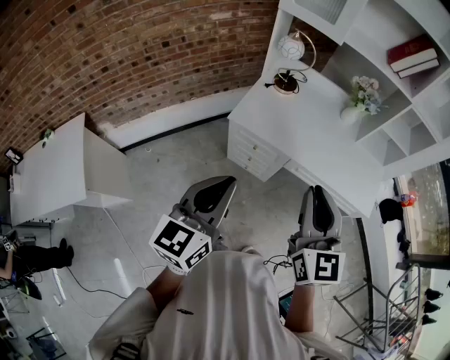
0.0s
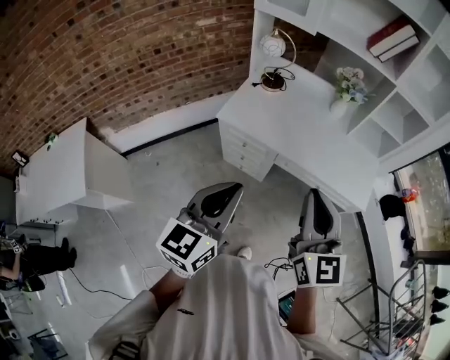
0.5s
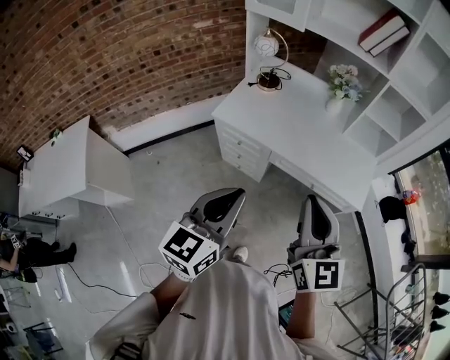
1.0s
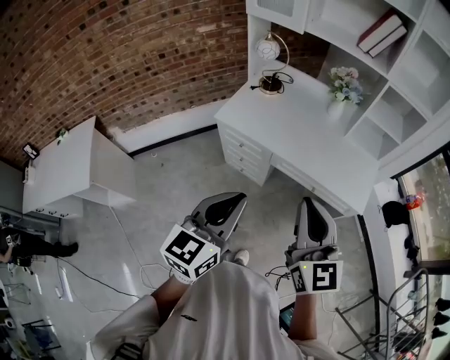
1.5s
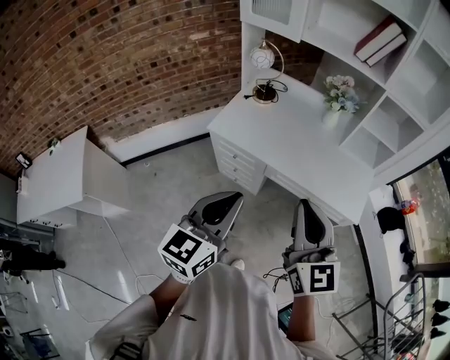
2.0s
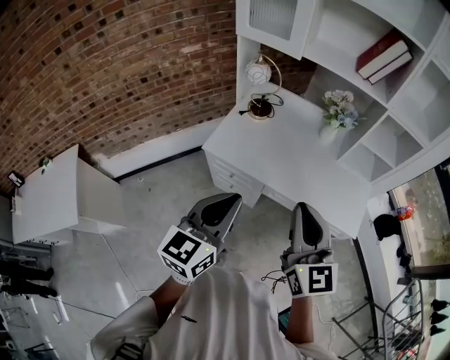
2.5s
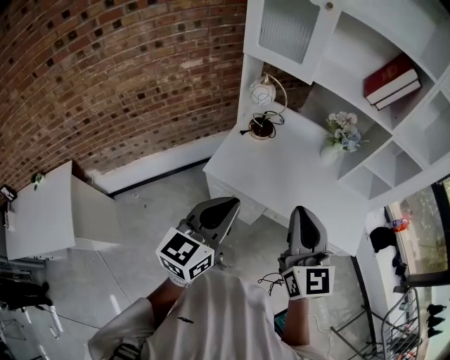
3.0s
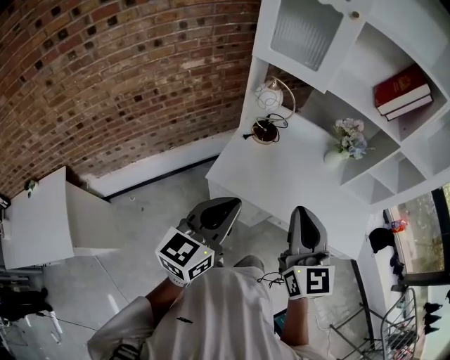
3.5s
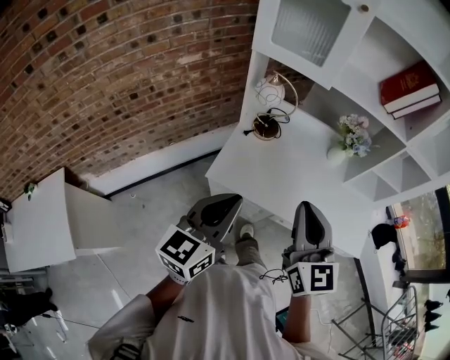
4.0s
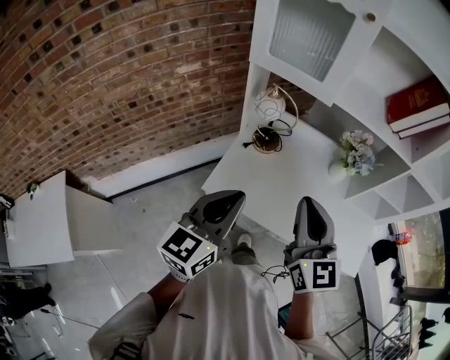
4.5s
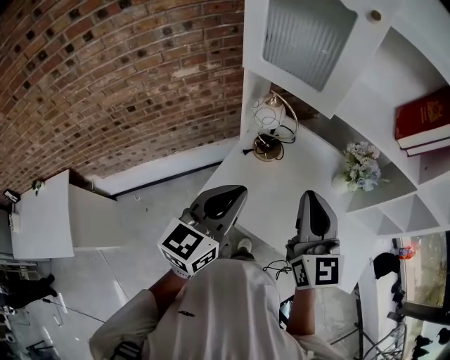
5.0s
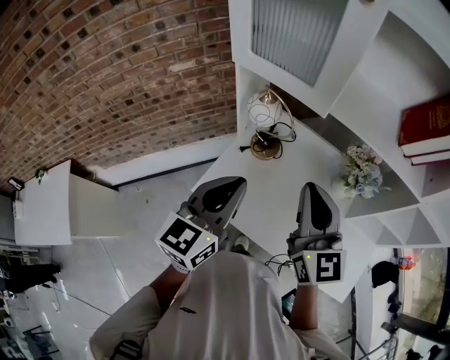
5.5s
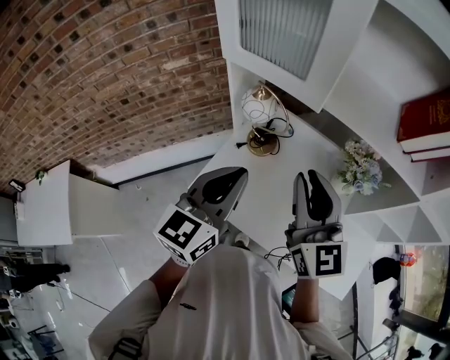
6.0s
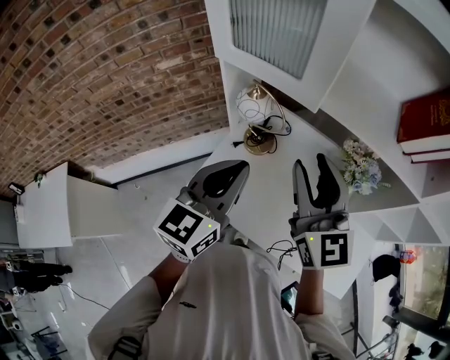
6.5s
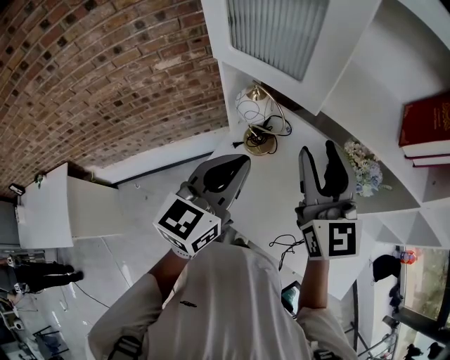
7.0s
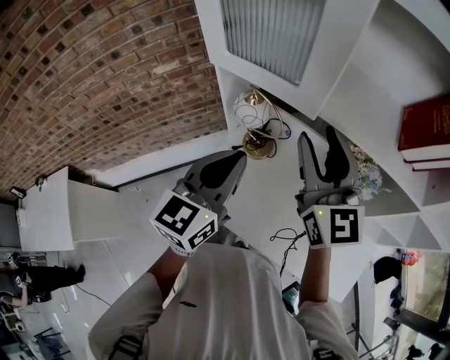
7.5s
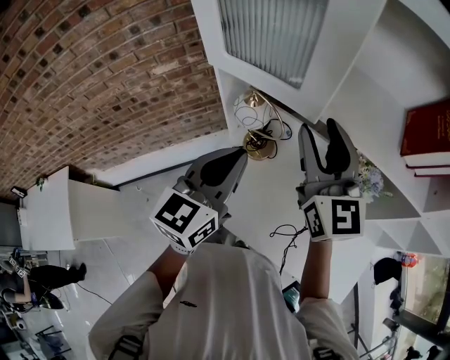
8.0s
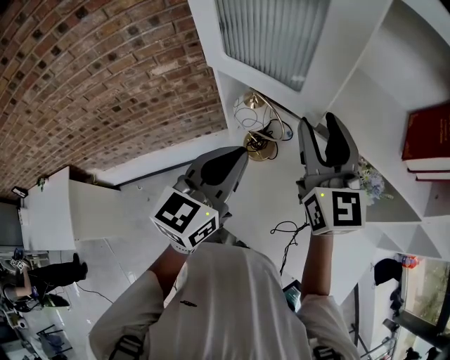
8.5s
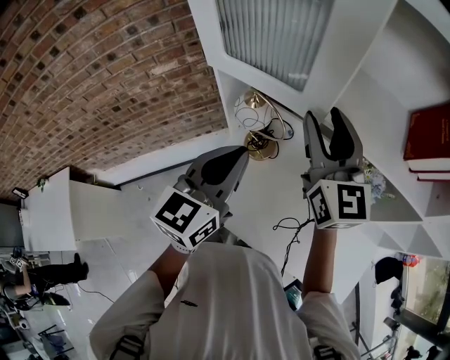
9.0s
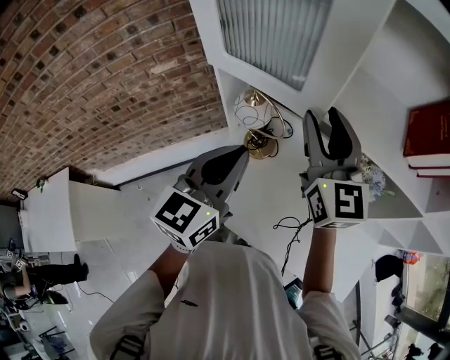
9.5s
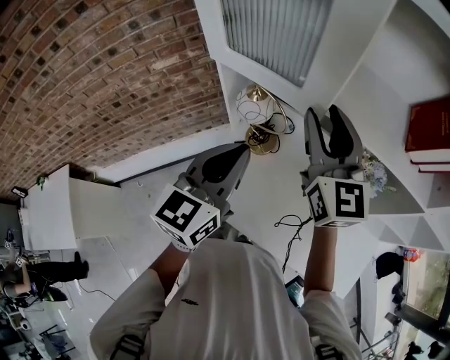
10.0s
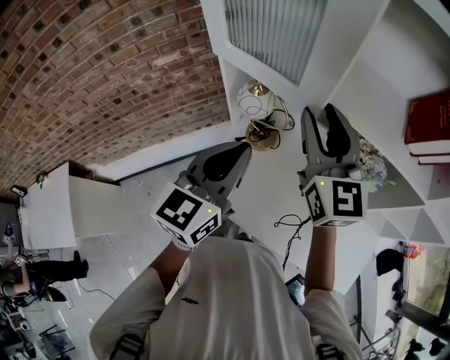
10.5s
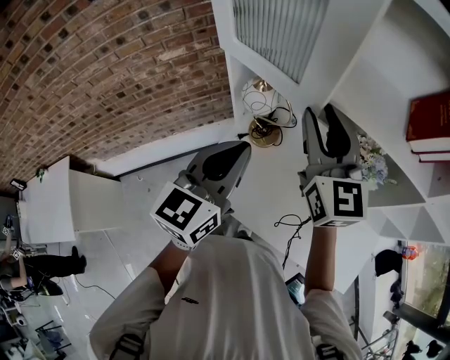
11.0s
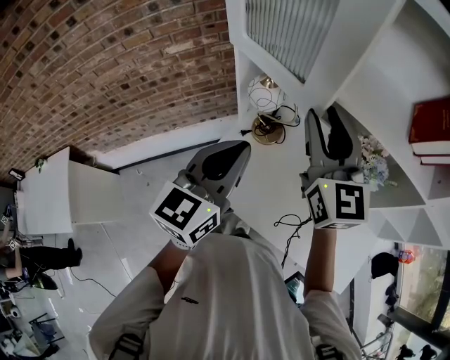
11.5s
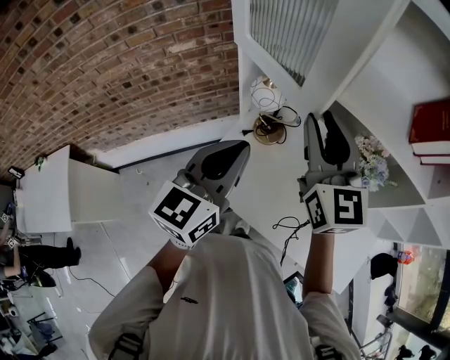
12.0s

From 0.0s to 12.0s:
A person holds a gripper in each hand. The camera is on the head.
From 0.0s to 2.0s: The grippers both shift to the right by about 20 cm.
From 2.0s to 4.0s: Both grippers move forward and to the left, about 30 cm.
From 4.0s to 6.0s: The right gripper heads forward, covering about 25 cm; the left gripper is displaced forward and to the right by some 25 cm.
From 6.0s to 8.0s: The left gripper goes about 10 cm forward. Meanwhile the right gripper moves forward, some 15 cm, and opens its fingers.
From 8.0s to 10.0s: The grippers stay close to where they were, moving slightly.
From 10.0s to 12.0s: The two grippers go about 5 cm backward.

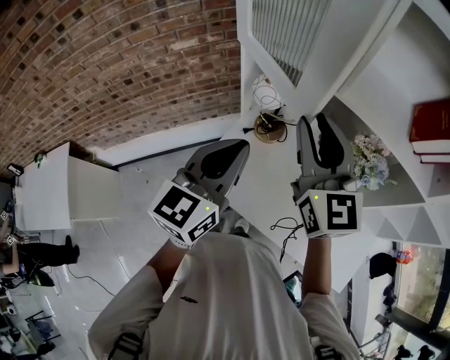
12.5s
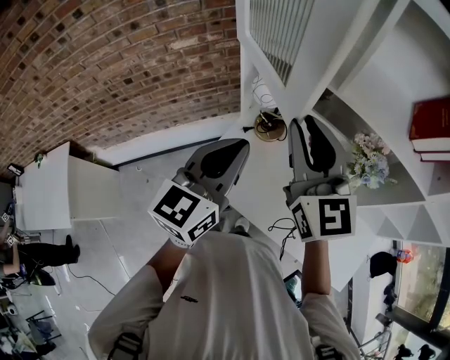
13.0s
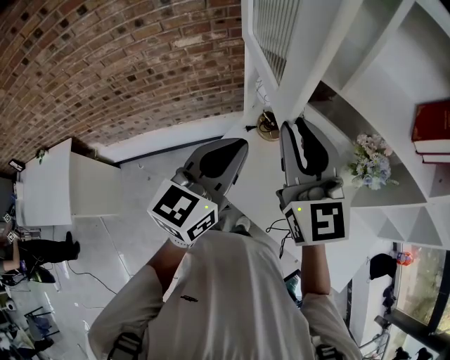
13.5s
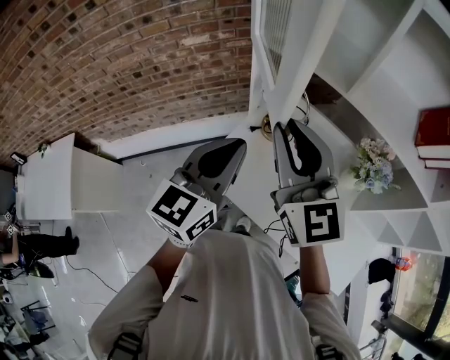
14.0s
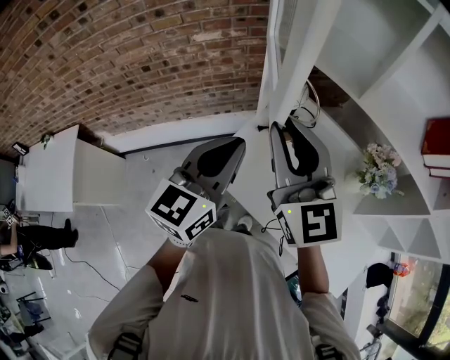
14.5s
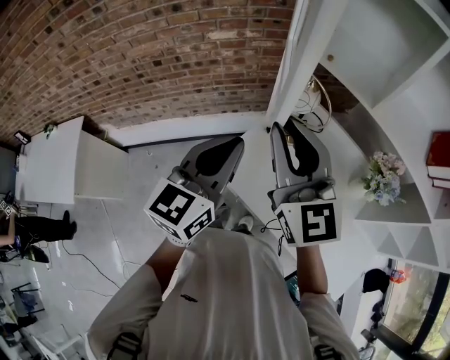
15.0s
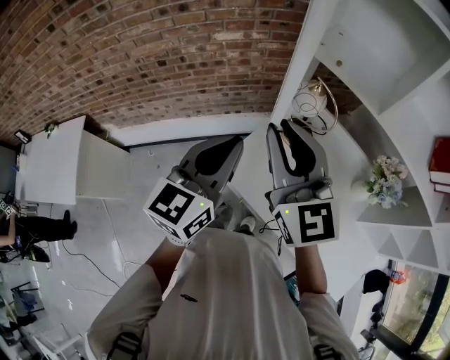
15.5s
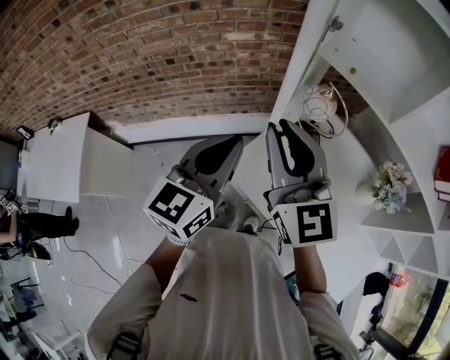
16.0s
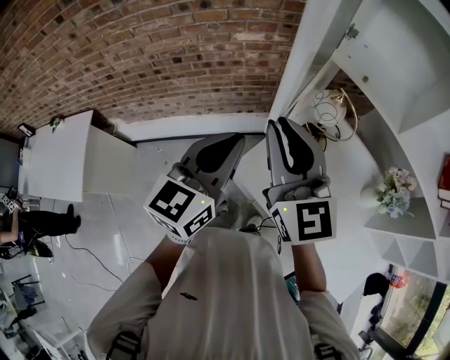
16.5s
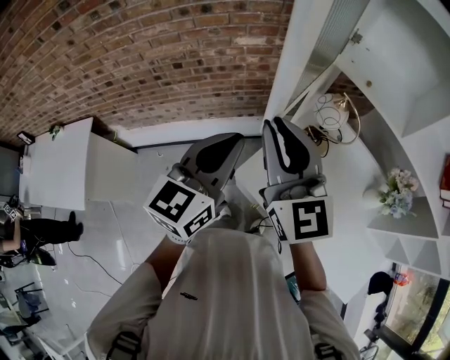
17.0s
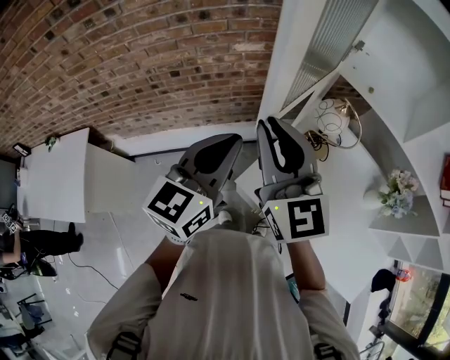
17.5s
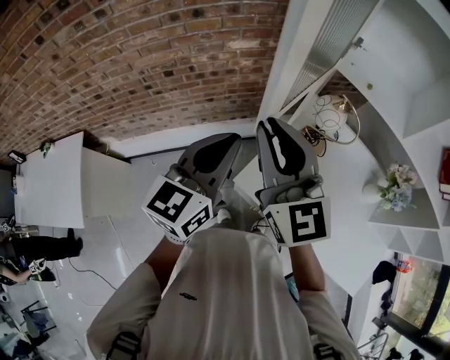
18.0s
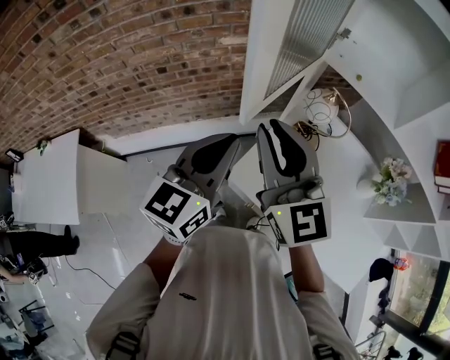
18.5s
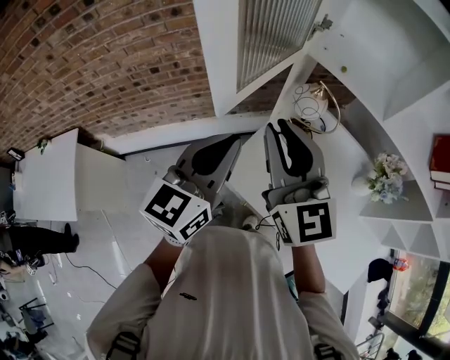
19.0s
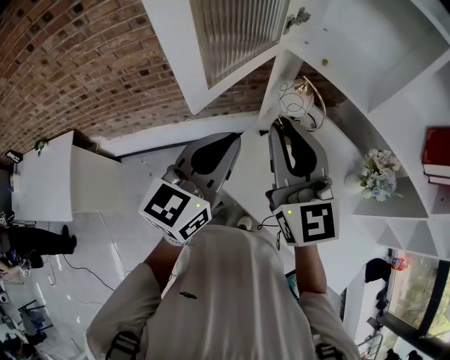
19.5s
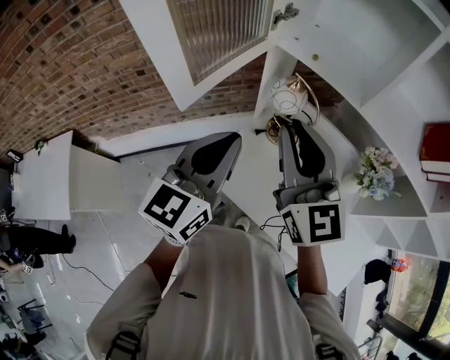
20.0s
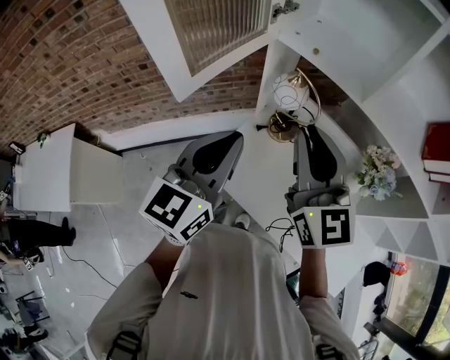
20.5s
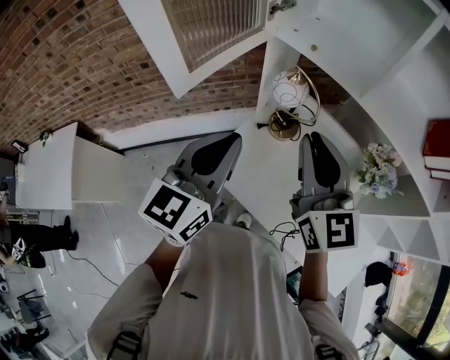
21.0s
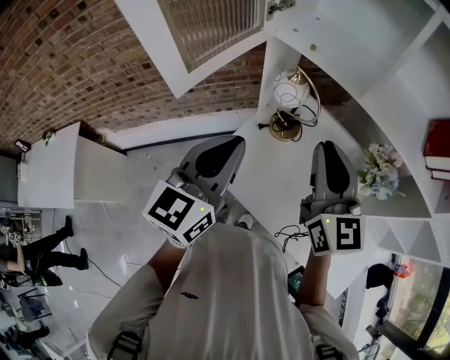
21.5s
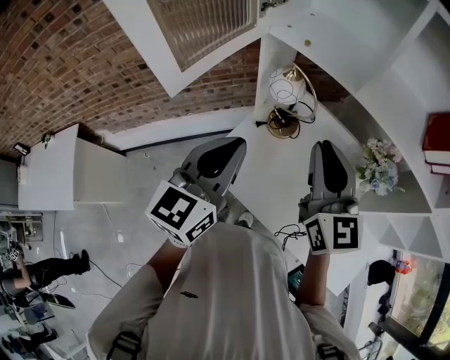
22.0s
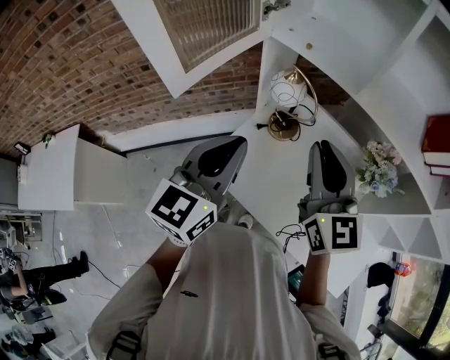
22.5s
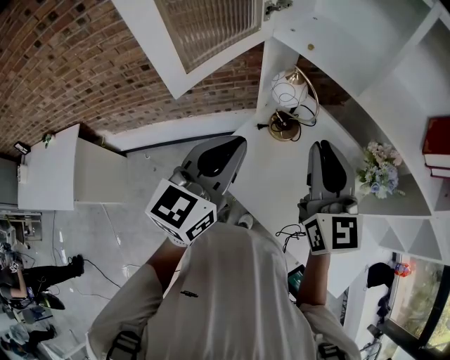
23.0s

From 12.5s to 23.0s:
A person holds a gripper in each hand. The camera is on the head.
From 12.5s to 14.5s: The right gripper goes approximately 10 cm to the left. The left gripper moves to the left, roughly 5 cm.
From 14.5s to 16.5s: Both grippers move to the left, about 15 cm.
From 19.0s to 21.0s: The right gripper travels to the right by roughly 15 cm, while the left gripper heads to the right, covering approximately 10 cm.
From 21.0s to 23.0s: There are only small adjustments of the grippers.

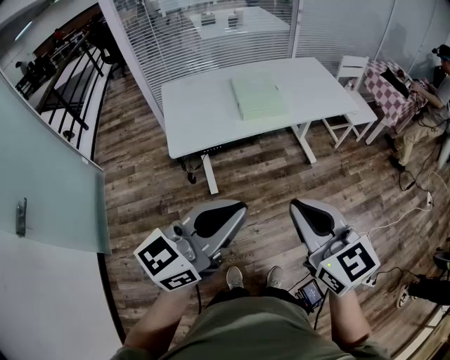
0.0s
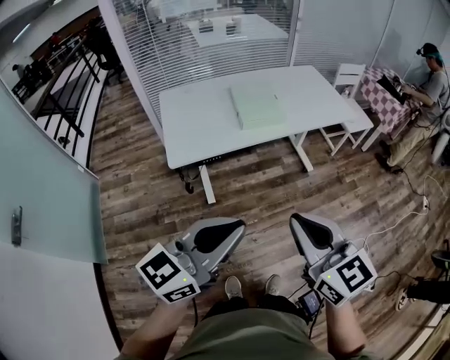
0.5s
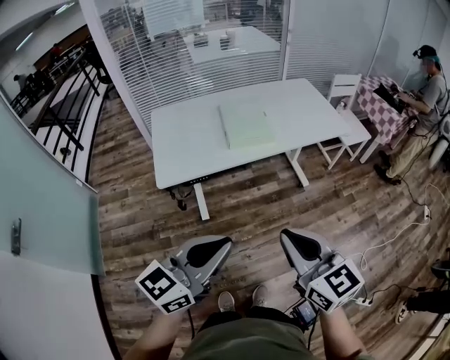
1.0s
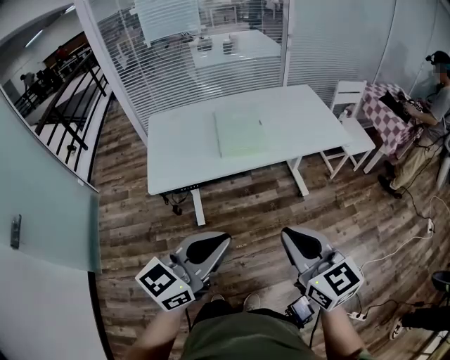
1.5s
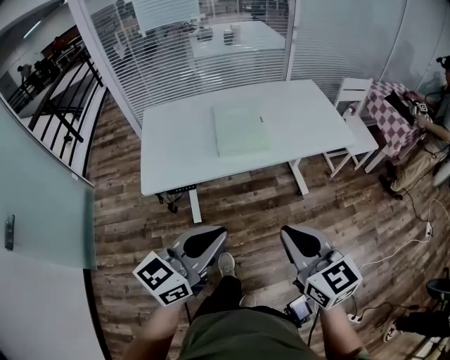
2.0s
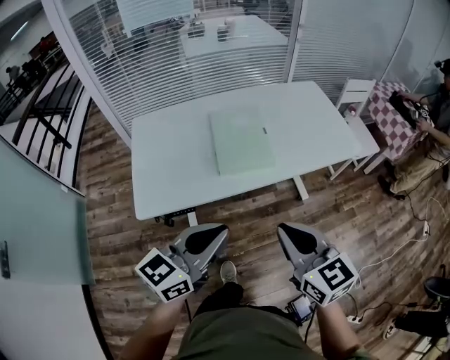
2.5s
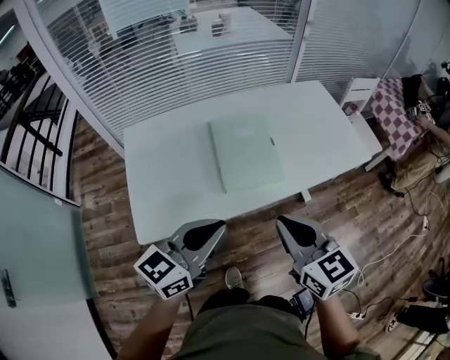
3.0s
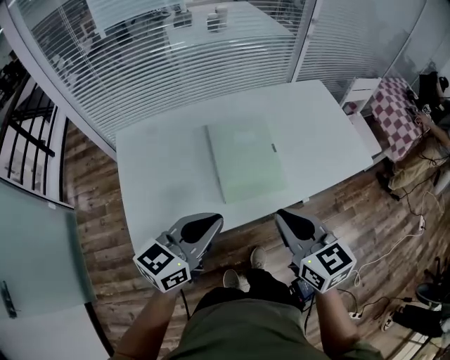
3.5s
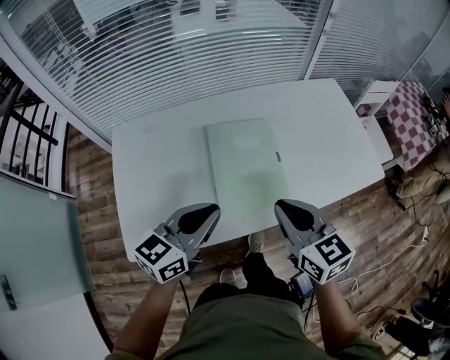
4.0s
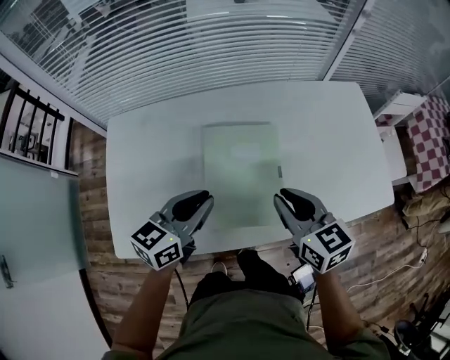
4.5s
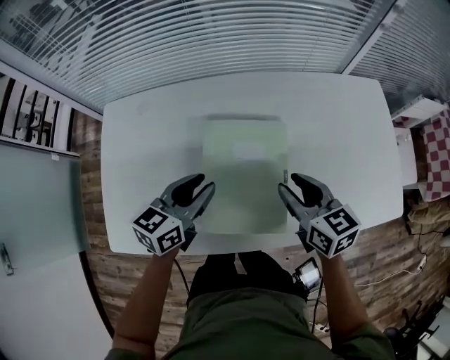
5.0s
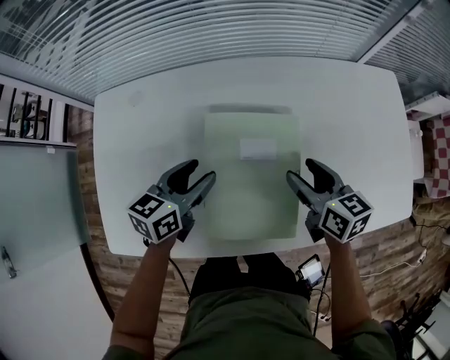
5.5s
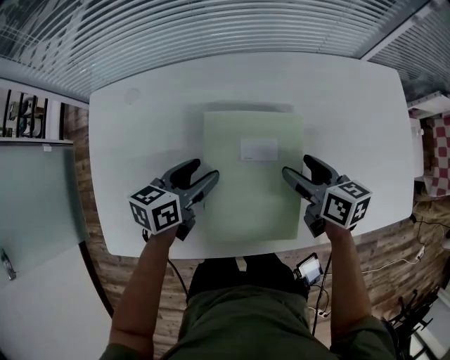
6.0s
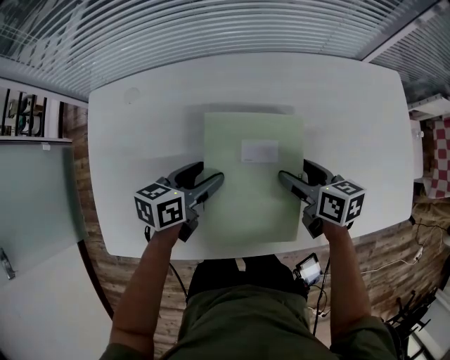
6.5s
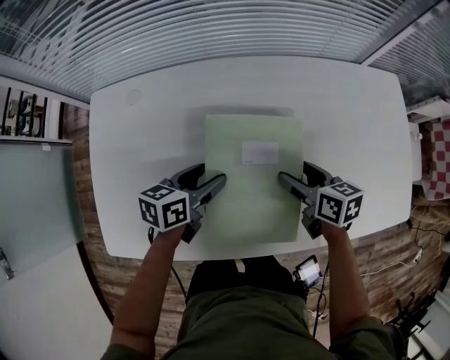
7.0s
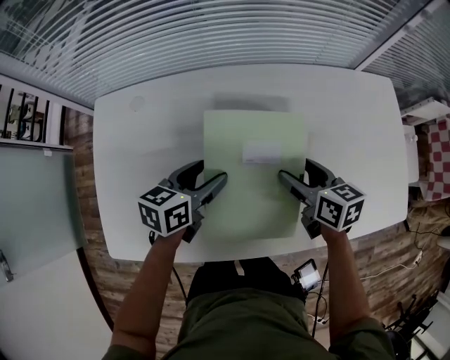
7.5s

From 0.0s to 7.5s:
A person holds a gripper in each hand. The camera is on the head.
From 0.0s to 2.0s: The left gripper travels forward, downward and to the right by approximately 20 cm. Meanwhile the right gripper shifts some 20 cm forward, to the right and downward.
From 2.0s to 4.0s: The grippers both shift forward by about 40 cm.
From 4.0s to 5.5s: Both grippers travel together forward and downward, about 25 cm. The right gripper changes its angle by some 20 degrees, and opens. Meanwhile the left gripper changes its angle by about 30 degrees, and opens up.
From 5.5s to 7.5s: The grippers move only a little.
